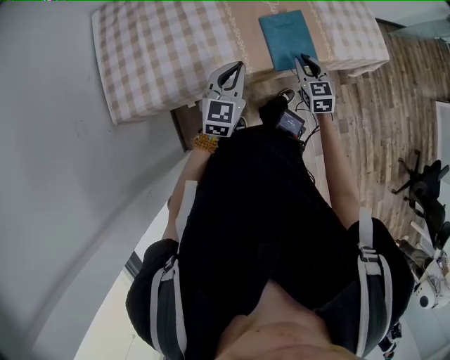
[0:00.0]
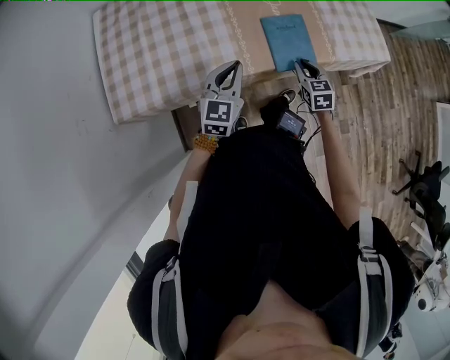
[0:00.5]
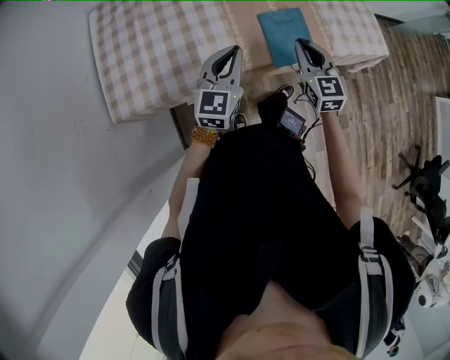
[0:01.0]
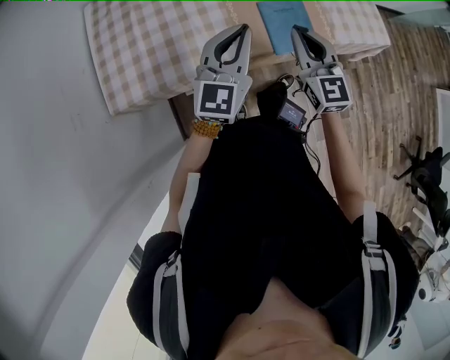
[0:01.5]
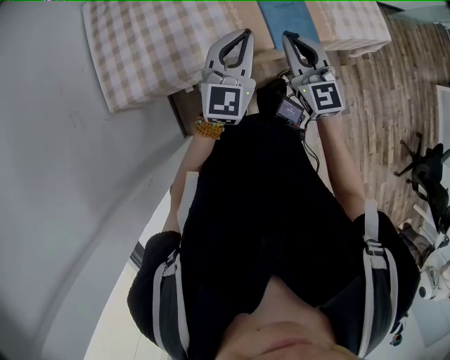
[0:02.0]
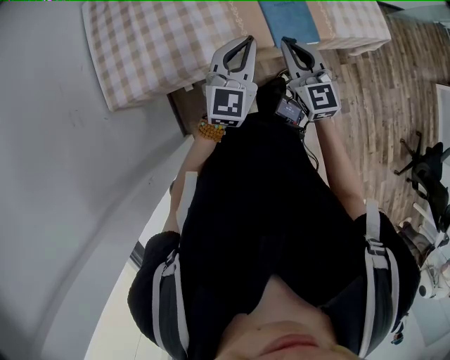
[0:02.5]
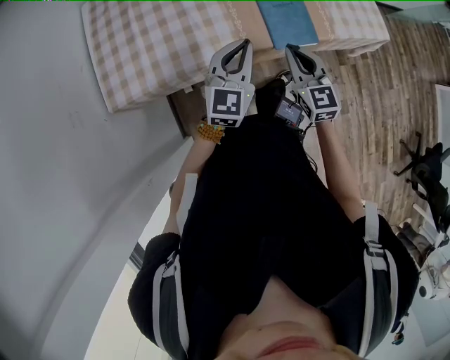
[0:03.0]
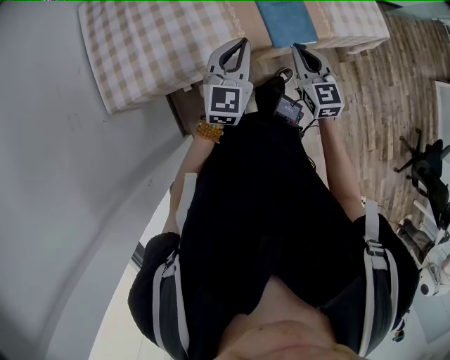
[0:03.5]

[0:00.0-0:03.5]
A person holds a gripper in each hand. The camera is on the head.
0:00.0 to 0:02.0: The left gripper goes approximately 10 cm upward. The right gripper is displaced upward and to the left by some 20 cm, and rotates some 30 degrees.
0:02.0 to 0:03.5: The left gripper heads downward, covering roughly 5 cm. The right gripper shifts some 10 cm downward and to the right.

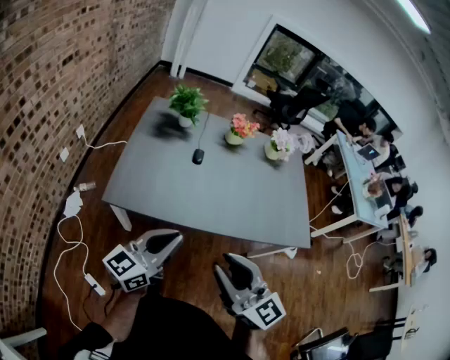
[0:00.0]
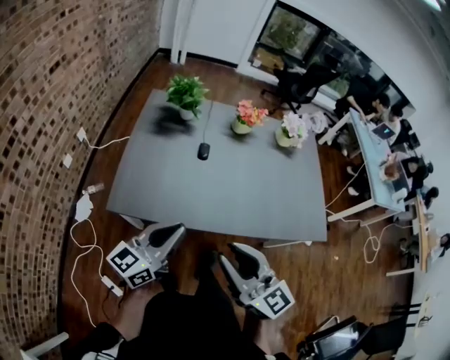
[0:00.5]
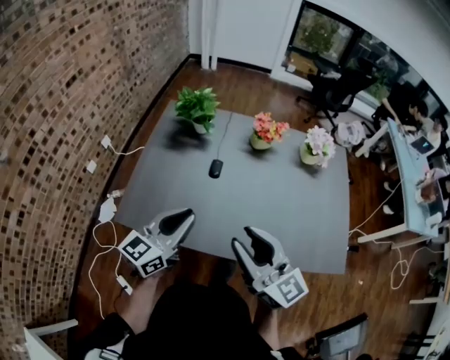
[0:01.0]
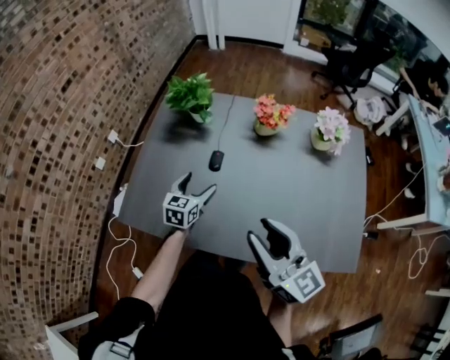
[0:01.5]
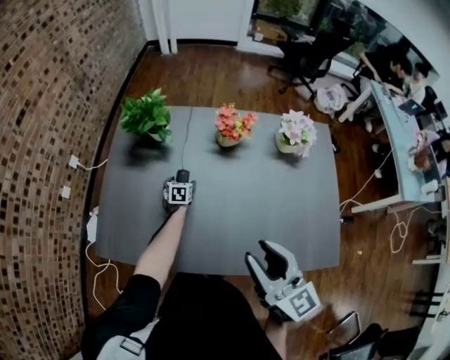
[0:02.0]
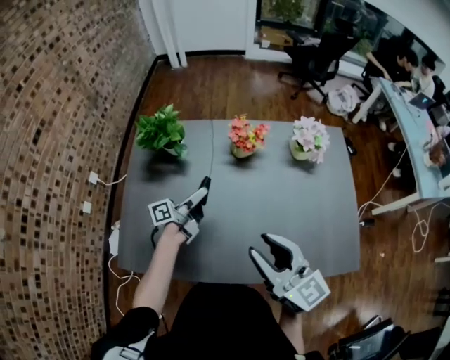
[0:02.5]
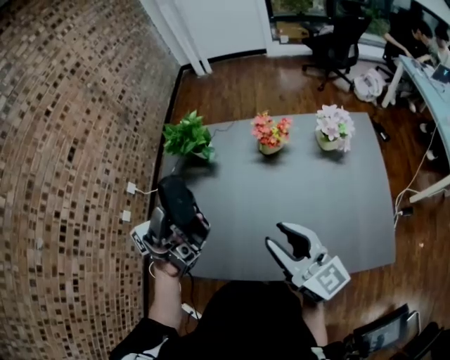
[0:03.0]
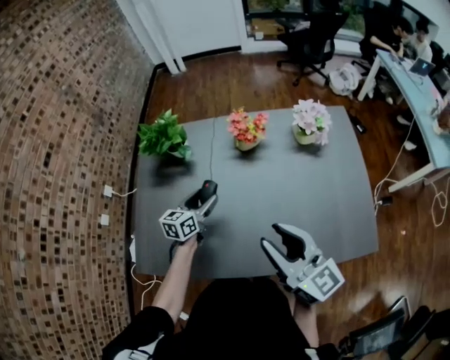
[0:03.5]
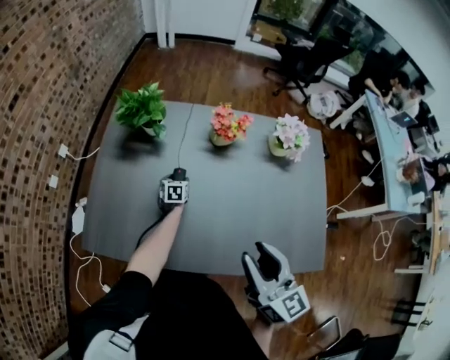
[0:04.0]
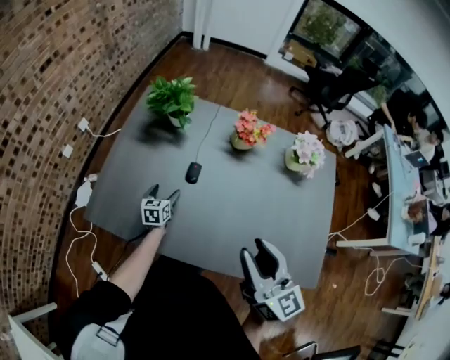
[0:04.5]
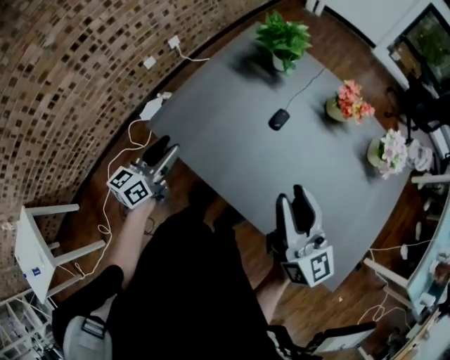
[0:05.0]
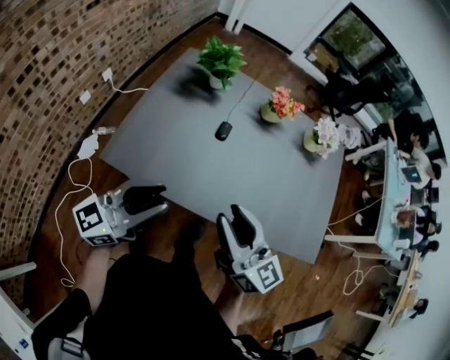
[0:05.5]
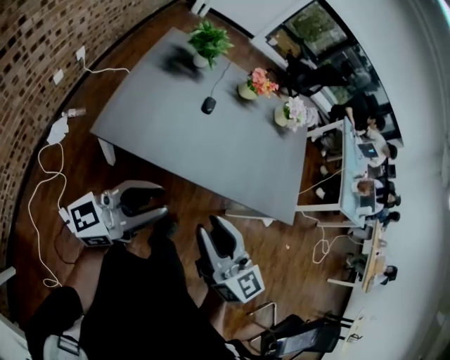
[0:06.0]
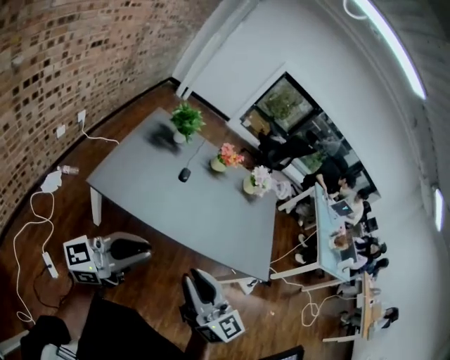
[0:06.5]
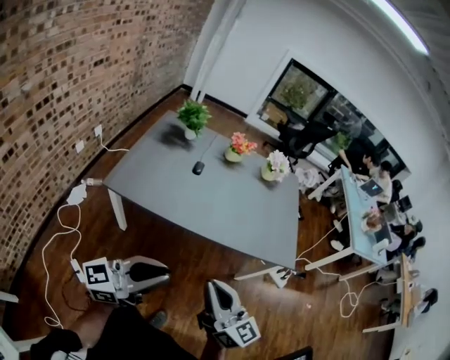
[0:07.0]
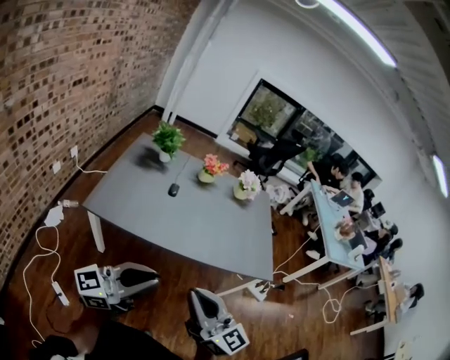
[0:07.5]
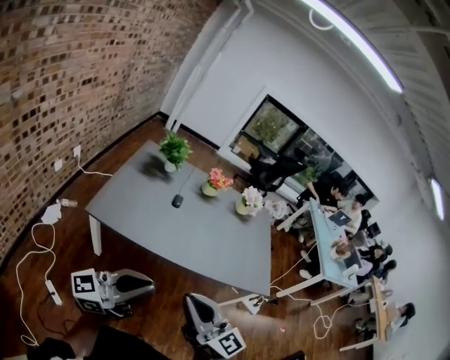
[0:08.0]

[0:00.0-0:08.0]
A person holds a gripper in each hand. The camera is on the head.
0:00.0 to 0:02.0: Both grippers are carried forward and to the right, approximately 50 cm. The left gripper goes approximately 40 cm downward, tilts its fingers approximately 60 degrees downward, and opens its fingers.
0:02.0 to 0:04.0: The left gripper reaches some 60 cm upward, then returns.
0:04.0 to 0:06.0: The right gripper ends up about 40 cm from where it was. The left gripper shifts by some 70 cm, angles its fingers upward, by approximately 70 degrees, and closes its fingers.
0:06.0 to 0:08.0: The two grippers go some 15 cm backward, to the right and upward. The right gripper closes.

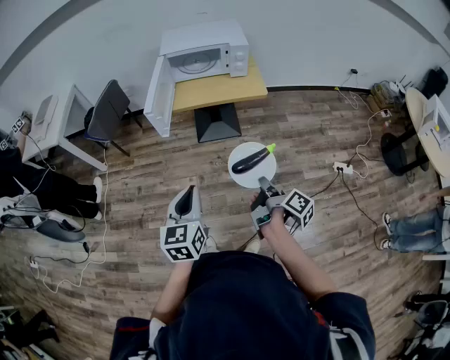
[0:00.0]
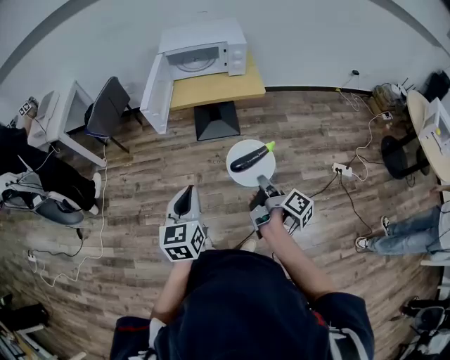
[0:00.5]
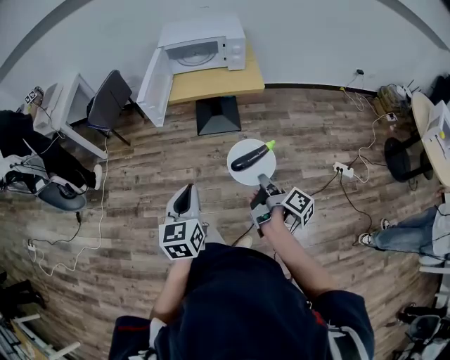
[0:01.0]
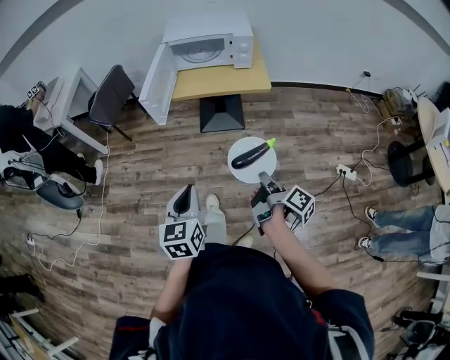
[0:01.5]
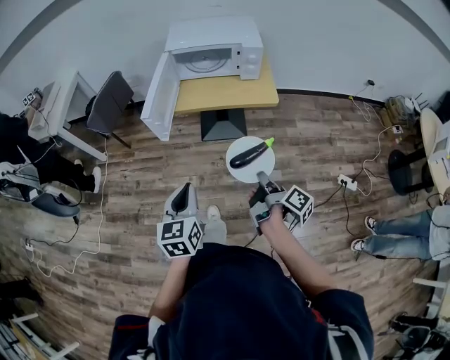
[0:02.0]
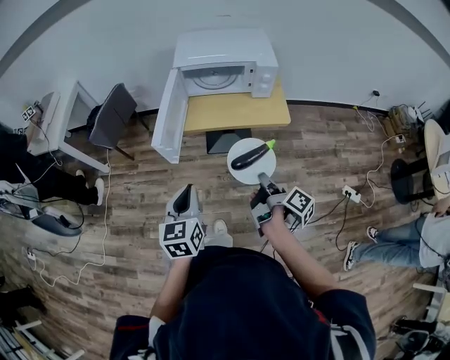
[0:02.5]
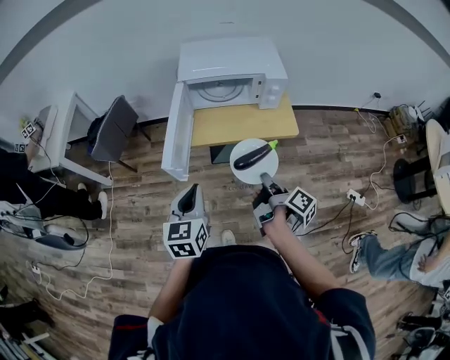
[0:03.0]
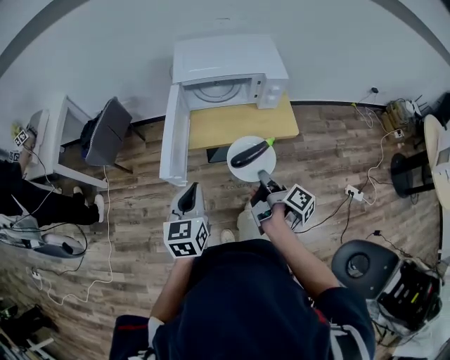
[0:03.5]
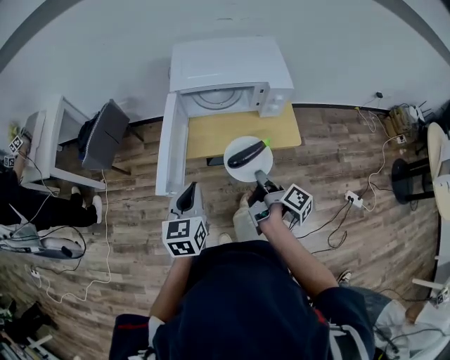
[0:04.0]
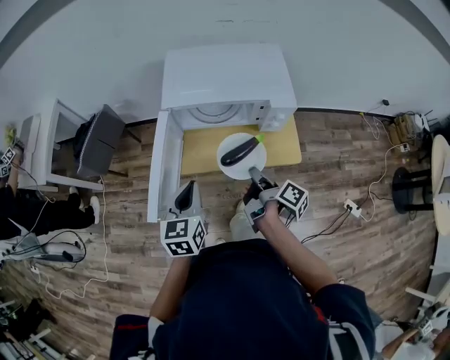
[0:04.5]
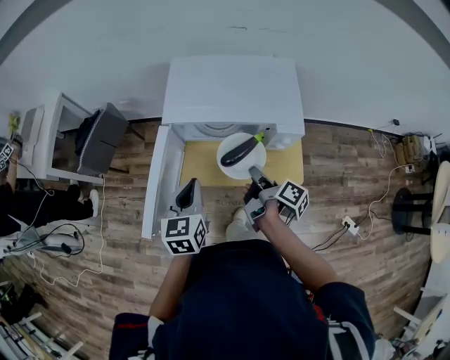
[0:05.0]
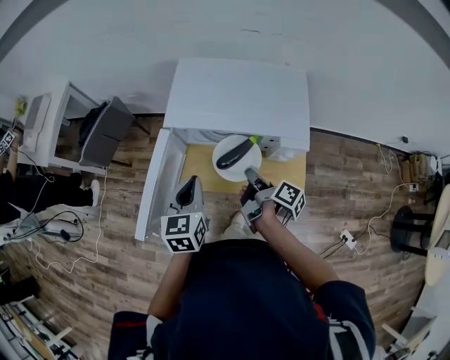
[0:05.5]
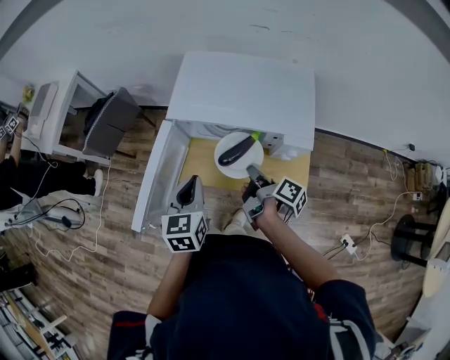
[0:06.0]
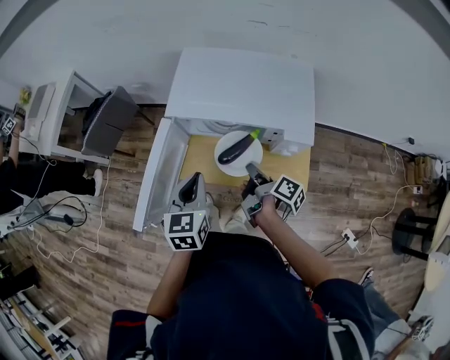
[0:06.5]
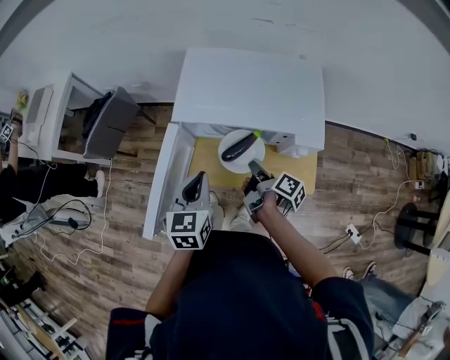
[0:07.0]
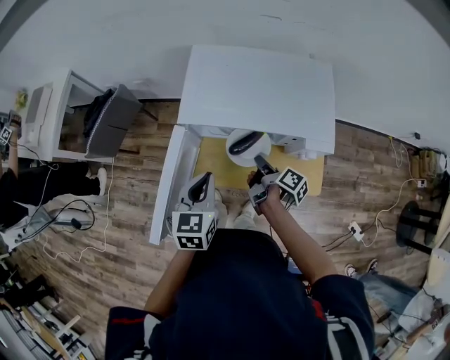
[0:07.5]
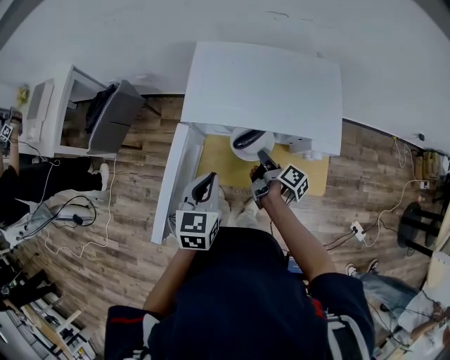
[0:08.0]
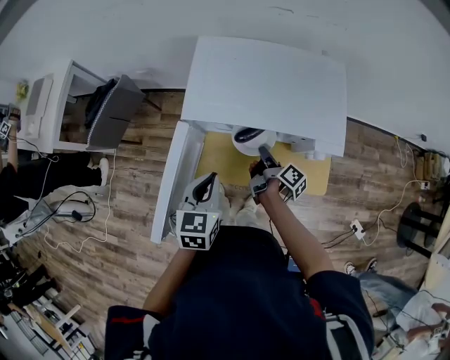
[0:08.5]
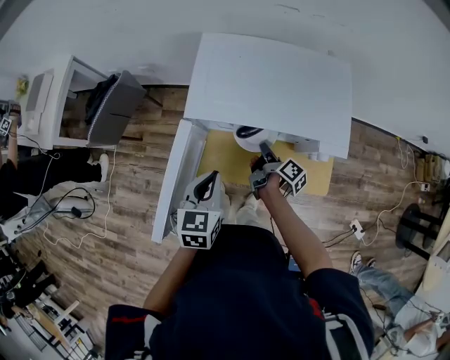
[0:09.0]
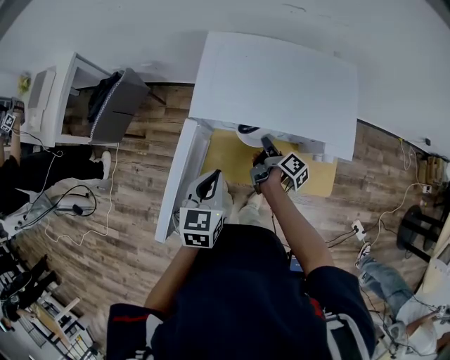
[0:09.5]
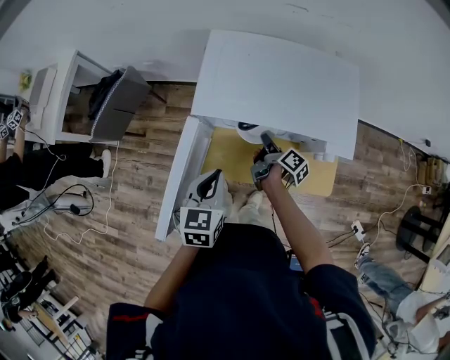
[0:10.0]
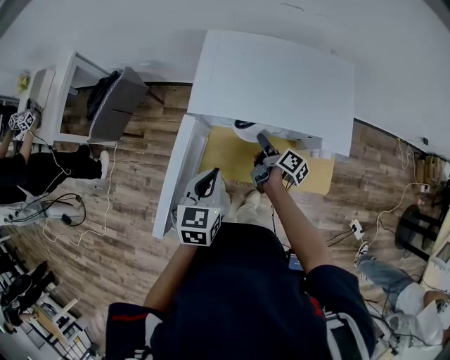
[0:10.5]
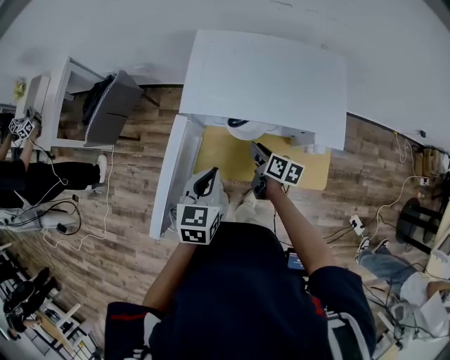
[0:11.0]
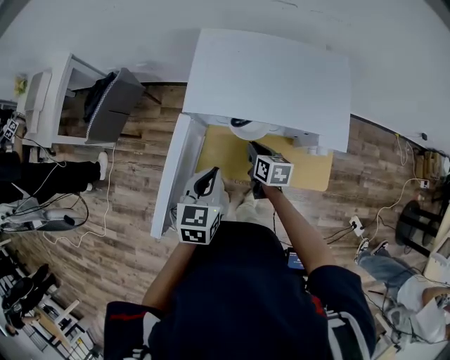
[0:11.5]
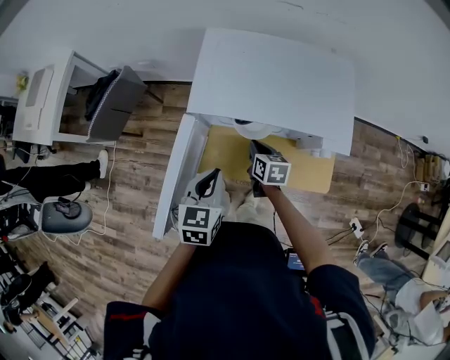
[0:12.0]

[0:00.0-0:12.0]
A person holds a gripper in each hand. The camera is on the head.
0:00.0 to 0:02.0: The left gripper shifts by about 10 cm.
0:02.0 to 0:04.0: The left gripper changes place by some 30 cm.
0:04.0 to 0:06.0: The left gripper changes place by about 20 cm.

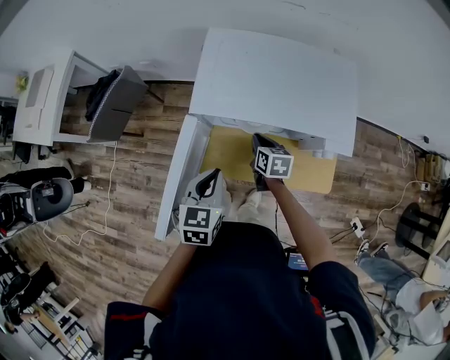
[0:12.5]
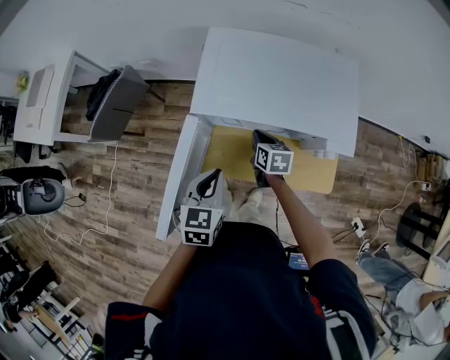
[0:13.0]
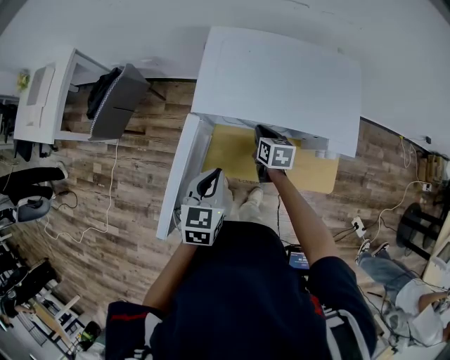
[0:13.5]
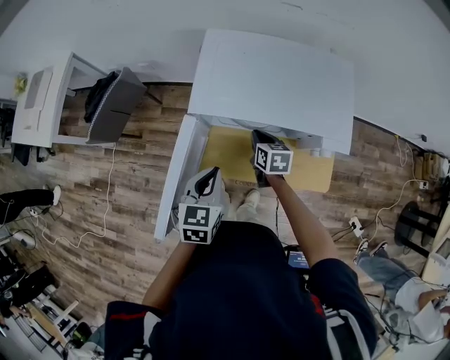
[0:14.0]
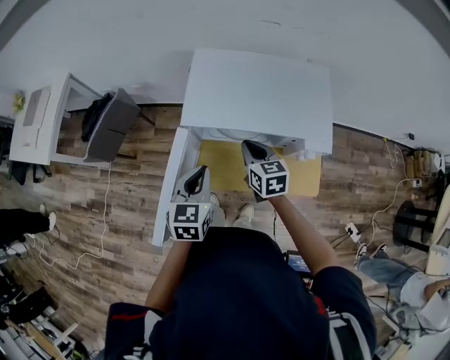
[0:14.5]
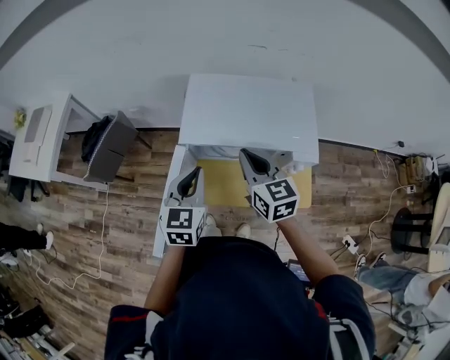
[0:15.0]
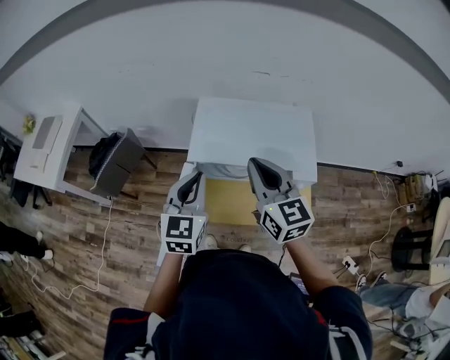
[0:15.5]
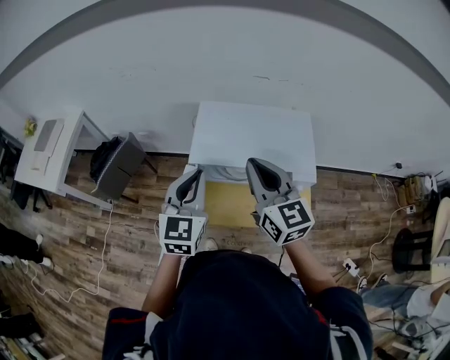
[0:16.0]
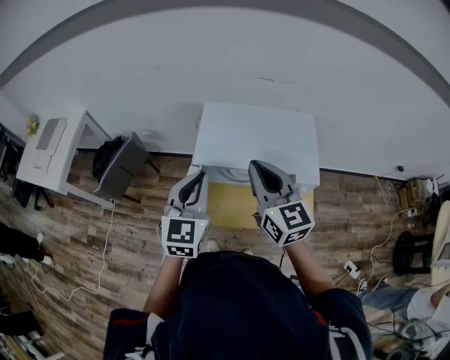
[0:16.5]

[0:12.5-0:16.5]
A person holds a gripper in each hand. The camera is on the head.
0:14.5 to 0:16.5: The left gripper shifts some 15 cm upward, and rotates approximately 20 degrees.
